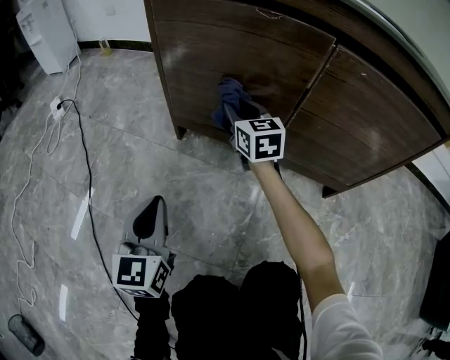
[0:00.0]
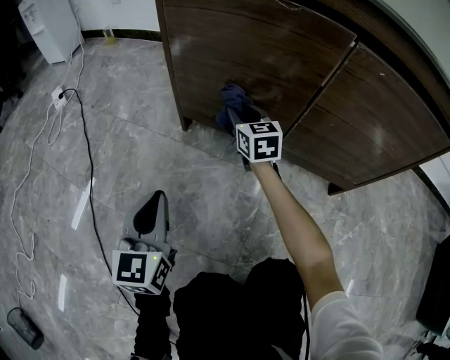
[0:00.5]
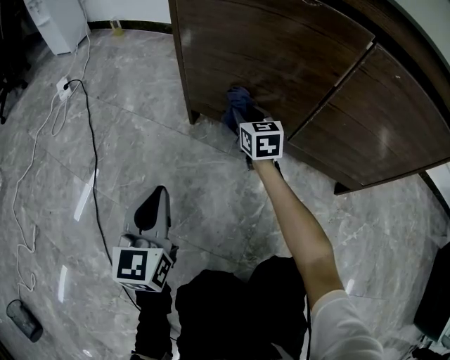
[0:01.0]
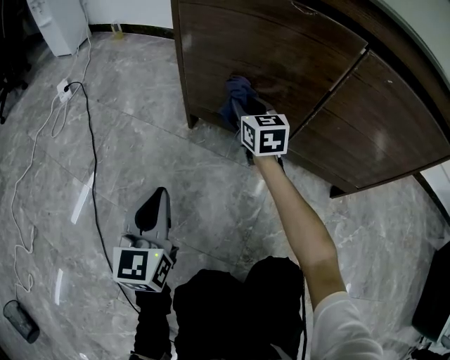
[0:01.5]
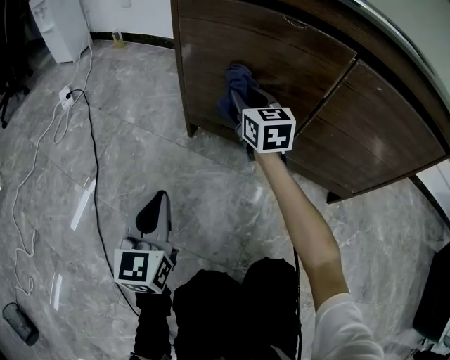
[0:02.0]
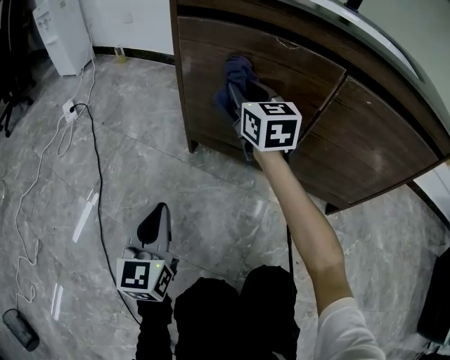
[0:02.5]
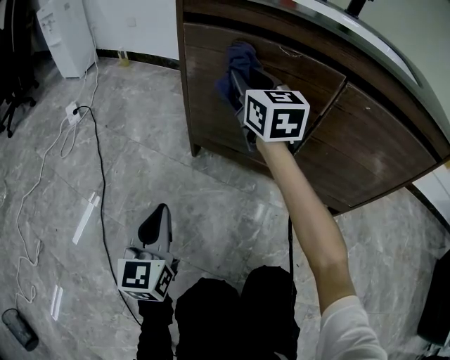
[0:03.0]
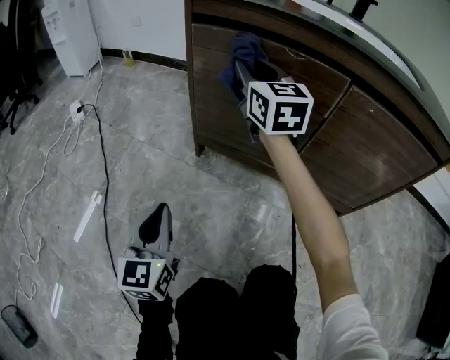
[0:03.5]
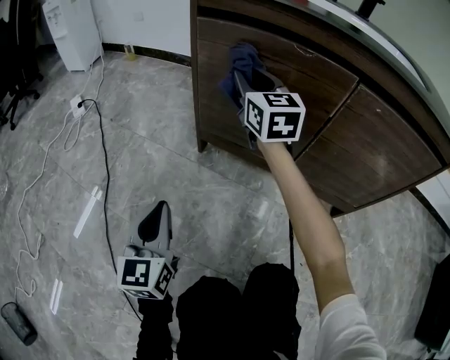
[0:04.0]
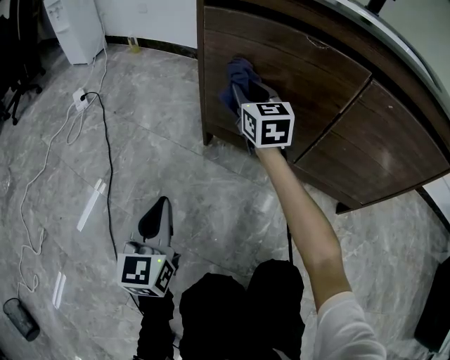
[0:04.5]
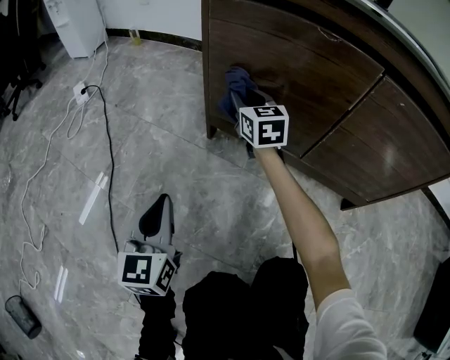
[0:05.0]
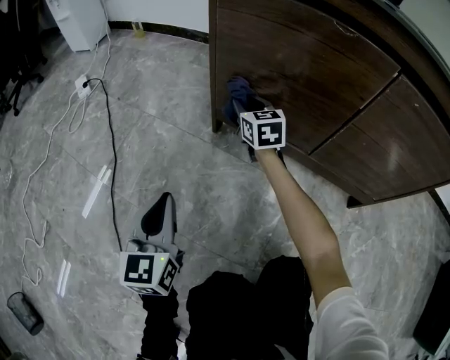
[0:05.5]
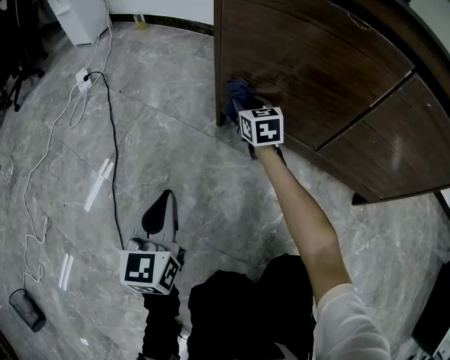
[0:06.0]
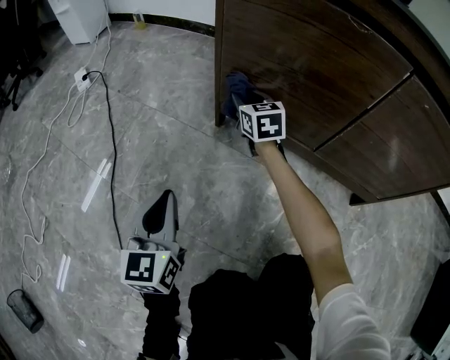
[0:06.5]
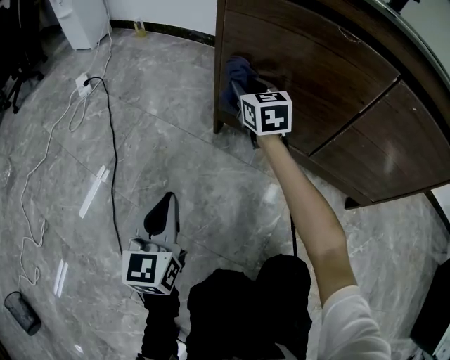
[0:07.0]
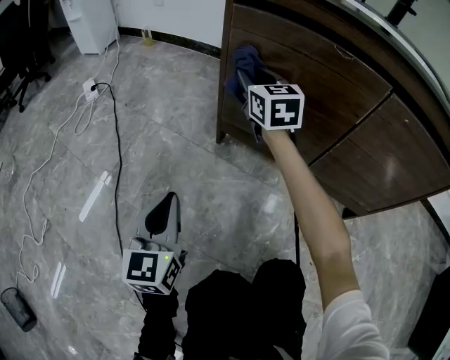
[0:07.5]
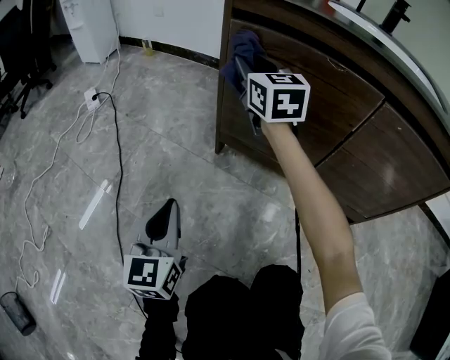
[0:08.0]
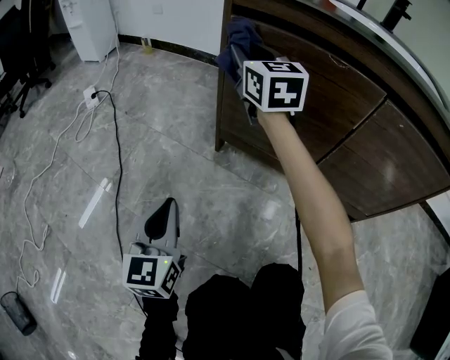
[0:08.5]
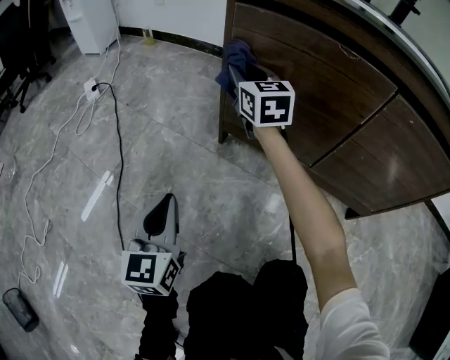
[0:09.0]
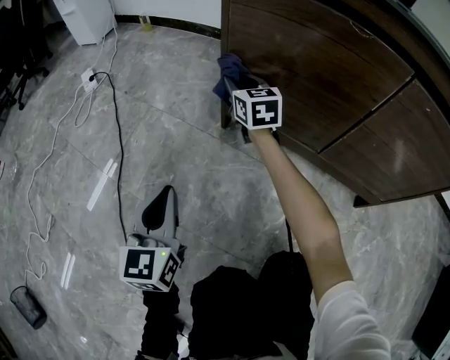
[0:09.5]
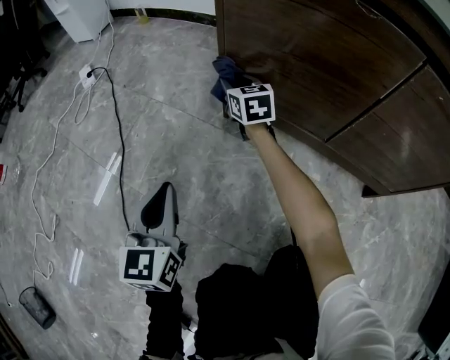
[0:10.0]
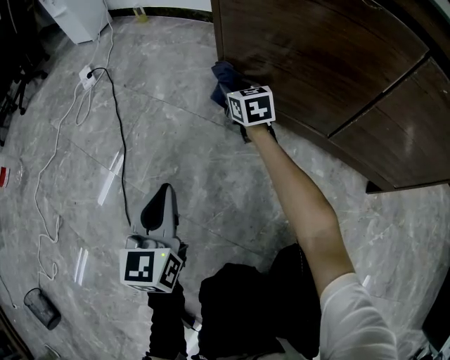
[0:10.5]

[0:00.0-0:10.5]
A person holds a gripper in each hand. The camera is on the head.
0.0 to 2.0 s: The right gripper reaches approximately 10 cm downward, then returns.
2.0 to 4.0 s: The right gripper goes some 10 cm upward.
4.0 to 6.5 s: The right gripper shifts roughly 25 cm downward, and swivels some 20 degrees. Meanwhile the left gripper ends up some 5 cm from where it was.
6.5 to 8.5 s: The right gripper is displaced upward by some 25 cm, and rotates about 20 degrees.
8.5 to 10.5 s: The right gripper travels downward by roughly 30 cm, and changes its angle by some 20 degrees.

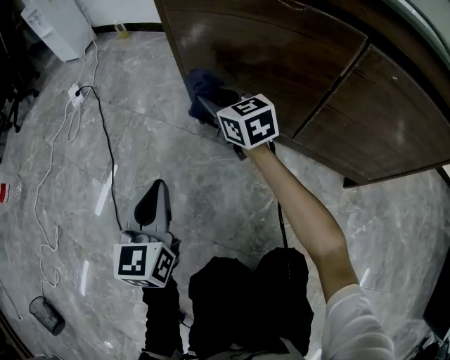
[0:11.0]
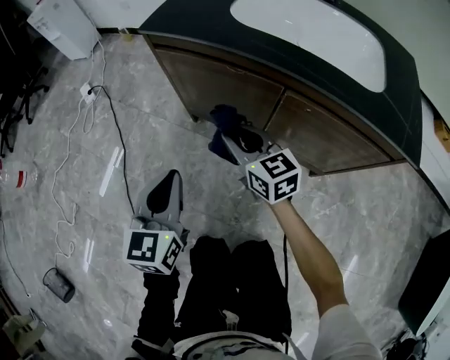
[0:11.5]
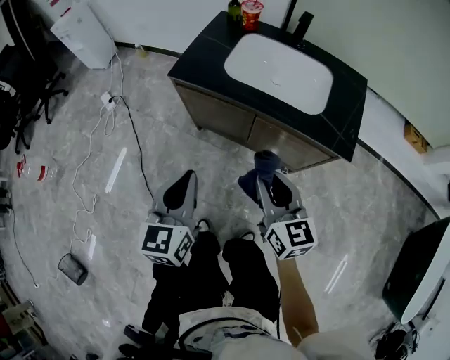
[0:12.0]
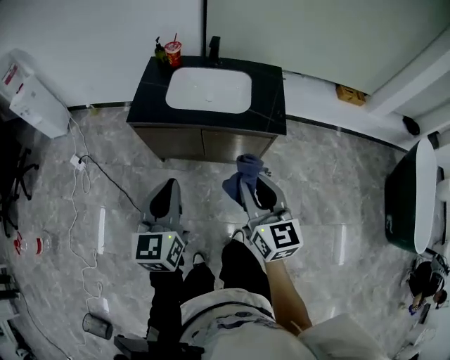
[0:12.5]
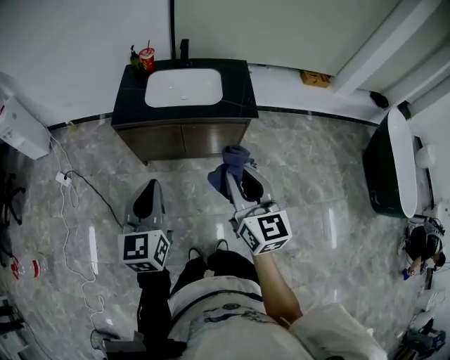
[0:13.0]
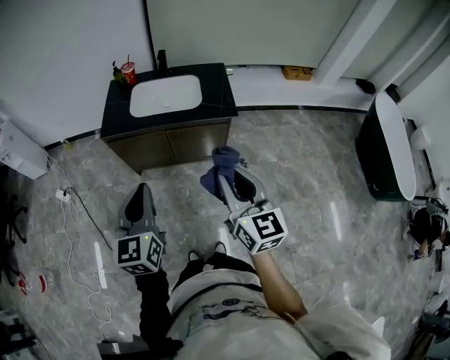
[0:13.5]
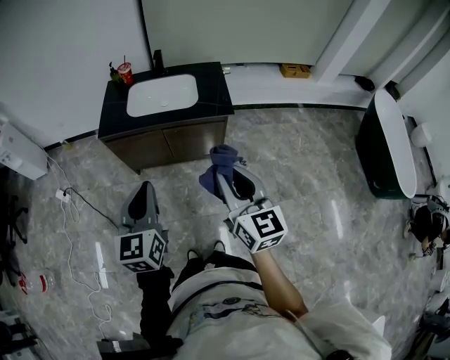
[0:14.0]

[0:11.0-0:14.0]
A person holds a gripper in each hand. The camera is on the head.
11.0 to 12.5 s: Both grippers travel together upward, roughly 60 cm. The left gripper changes its angle by about 20 degrees. Meanwhile the right gripper changes its angle by some 40 degrees.
12.5 to 14.0 s: Both grippers move backward and upward, approximately 15 cm.

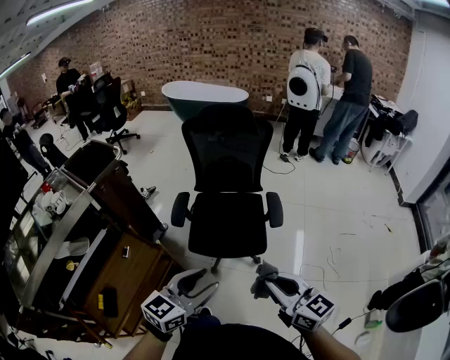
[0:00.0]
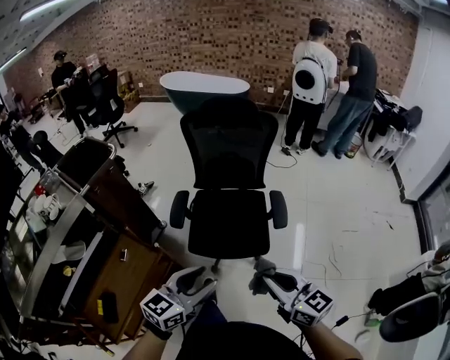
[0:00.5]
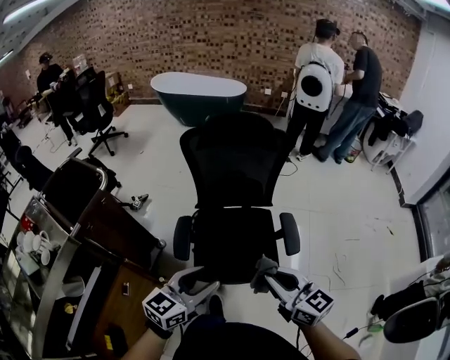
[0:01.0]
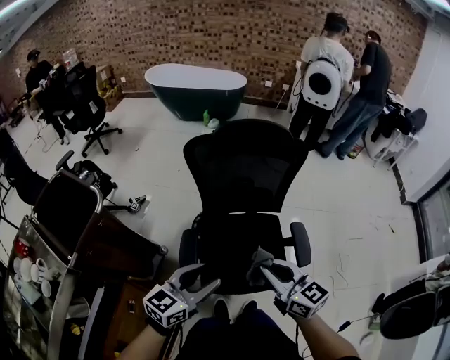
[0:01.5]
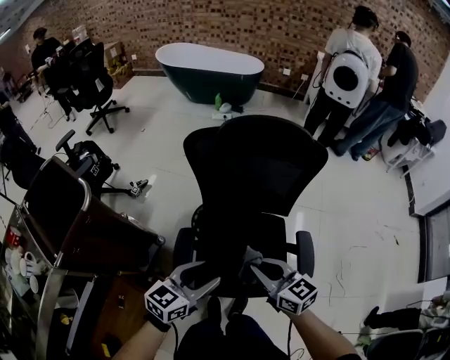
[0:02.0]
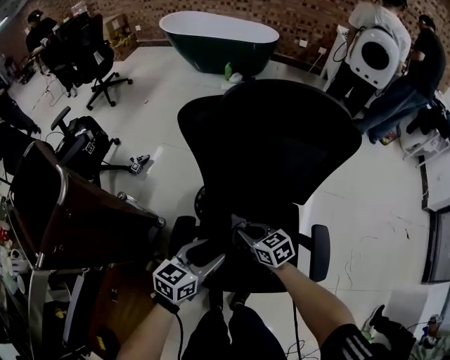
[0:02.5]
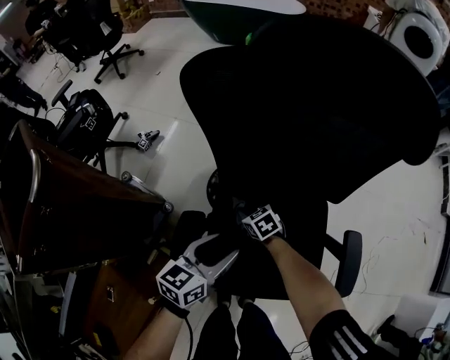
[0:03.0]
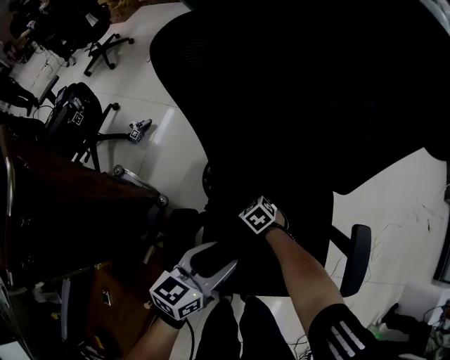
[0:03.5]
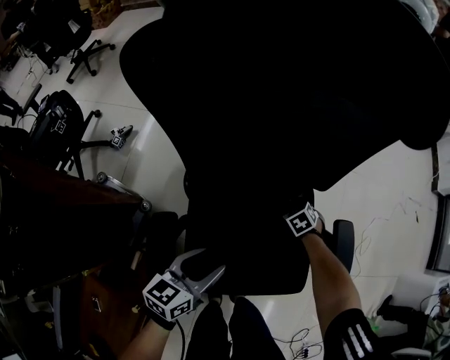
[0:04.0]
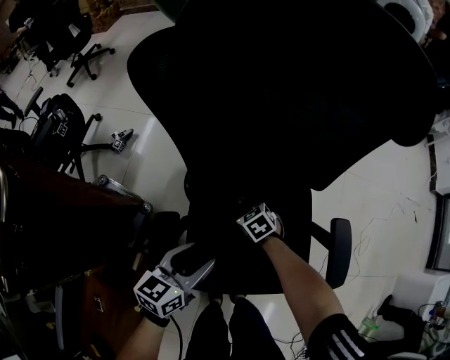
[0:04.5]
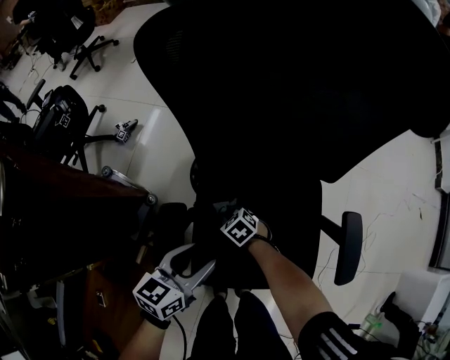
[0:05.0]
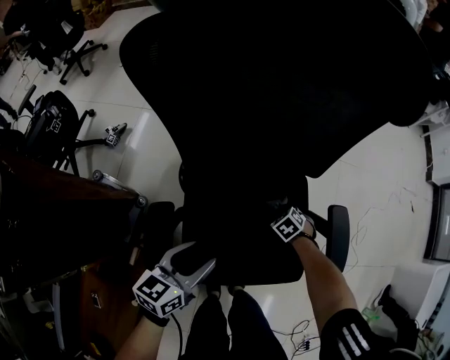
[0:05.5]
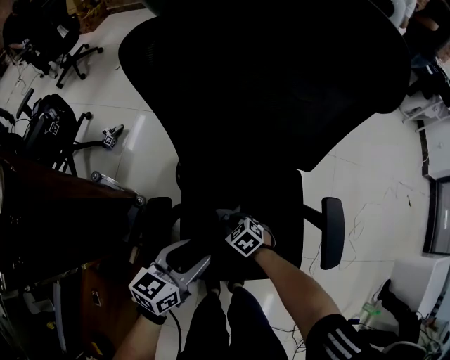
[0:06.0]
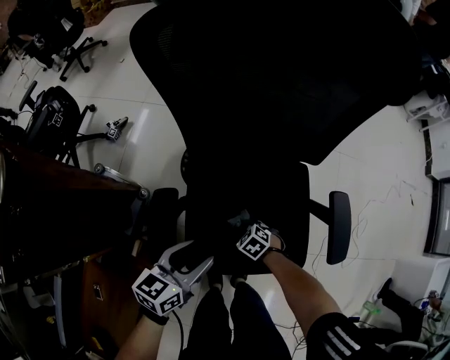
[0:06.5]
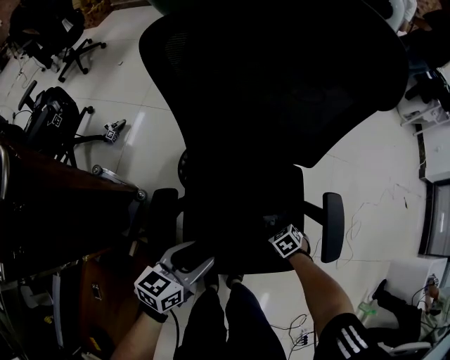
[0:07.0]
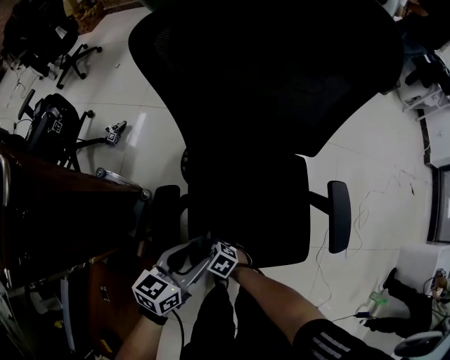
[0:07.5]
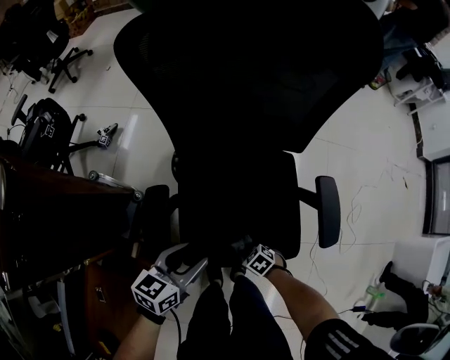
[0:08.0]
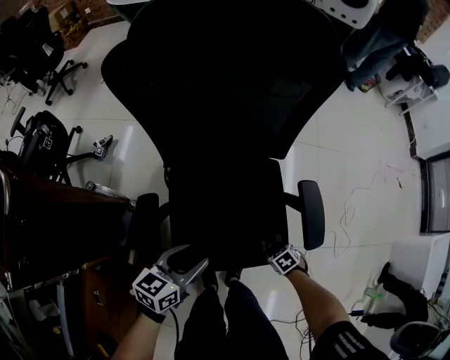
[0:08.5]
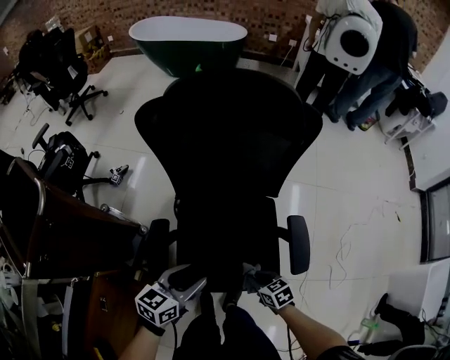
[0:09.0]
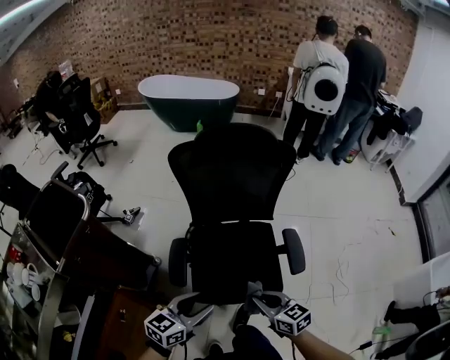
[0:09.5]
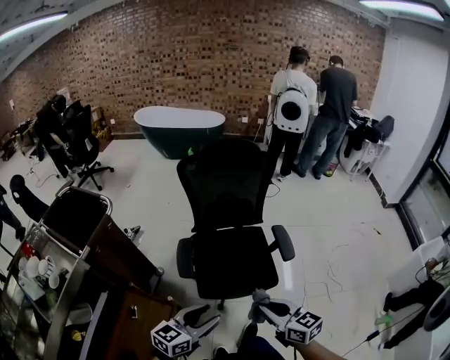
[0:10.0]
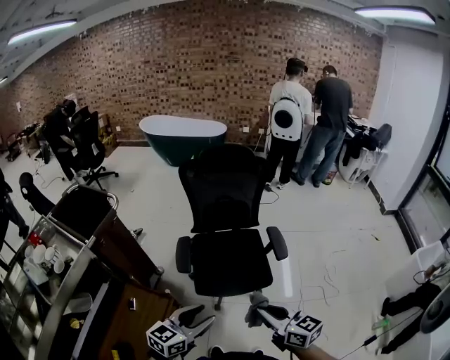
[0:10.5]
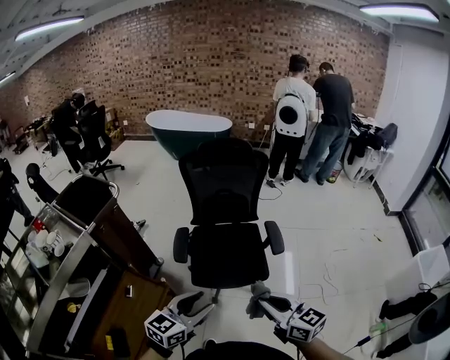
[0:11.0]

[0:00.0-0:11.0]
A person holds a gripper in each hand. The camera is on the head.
0.0 to 2.0 s: Both grippers are carried forward, approximately 50 cm.
2.0 to 3.5 s: The right gripper heads downward and forward, covering about 60 cm, and points its fingers some 40 degrees further downward, while the left gripper heads downward and forward, covering some 30 cm.
3.5 to 5.5 s: The right gripper ends up approximately 25 cm from where it was.
5.5 to 7.5 s: The left gripper ends up some 5 cm from where it was. Meanwhile the right gripper moves up and down over approximately 5 cm, changing direction 2 times, and changes its angle by roughly 30 degrees.
7.5 to 9.0 s: The left gripper travels upward by approximately 10 cm. The right gripper shifts by about 30 cm, and changes its angle by roughly 30 degrees.
9.0 to 11.0 s: The left gripper moves backward and upward, about 50 cm, and rotates approximately 20 degrees, while the right gripper shifts approximately 60 cm upward and backward, and angles its fingers upward, by some 40 degrees.

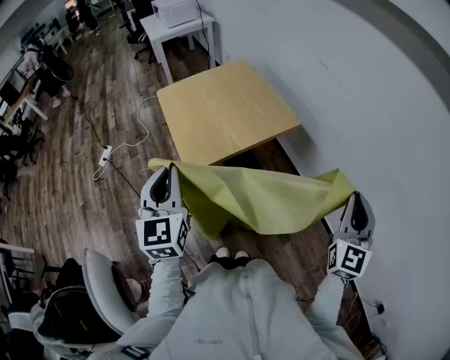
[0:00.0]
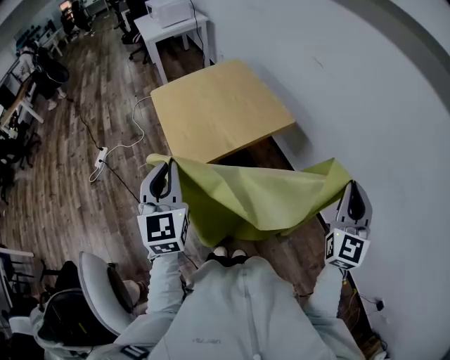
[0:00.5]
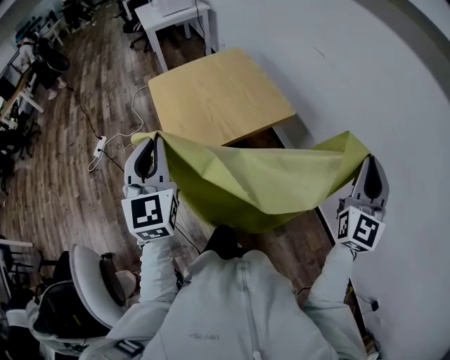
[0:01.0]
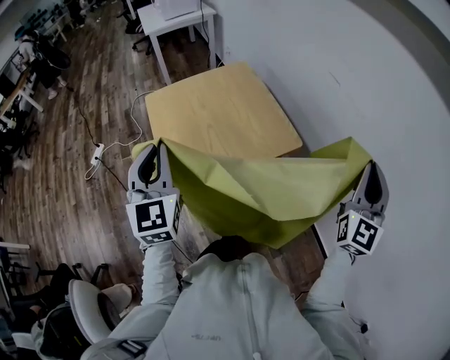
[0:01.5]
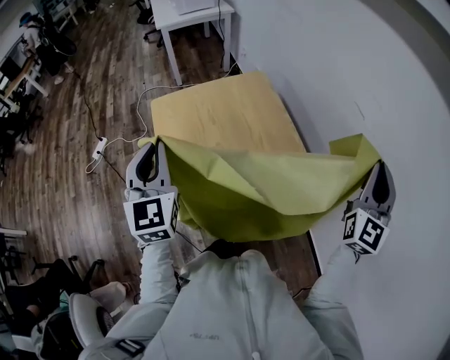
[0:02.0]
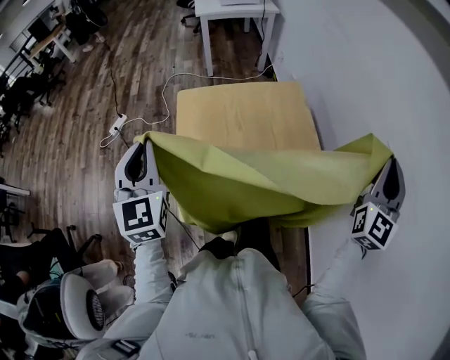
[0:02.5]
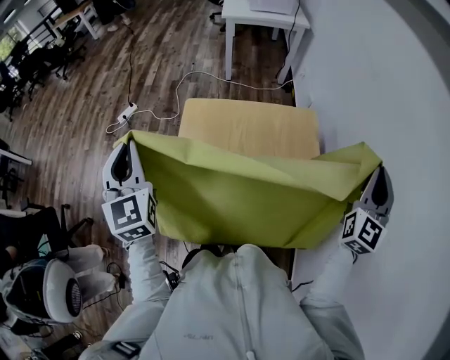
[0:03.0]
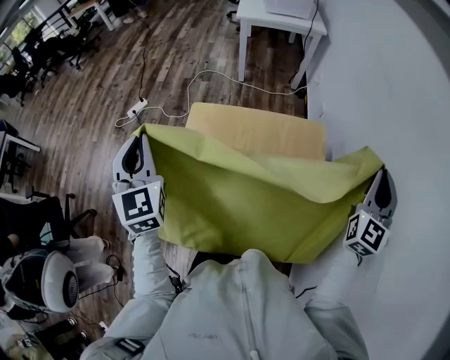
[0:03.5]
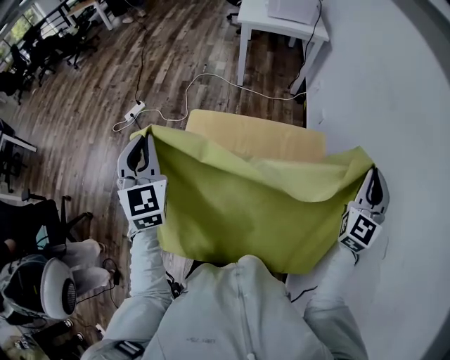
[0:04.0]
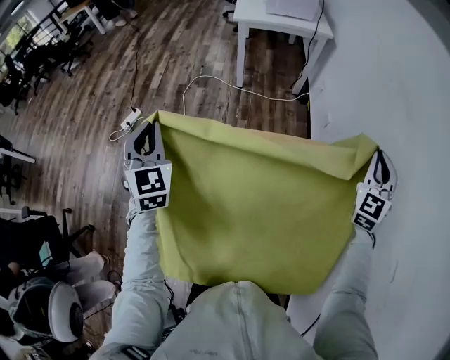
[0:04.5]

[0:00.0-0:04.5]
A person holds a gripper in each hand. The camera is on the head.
0.0 to 2.0 s: The two grippers go about 30 cm forward.
2.0 to 4.5 s: The right gripper moves some 50 cm, and turns by approximately 30 degrees; the left gripper ends up about 35 cm from where it was, and turns by about 30 degrees.
